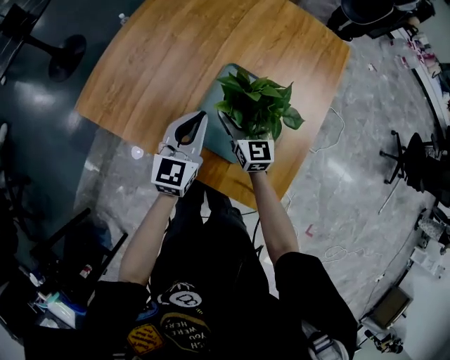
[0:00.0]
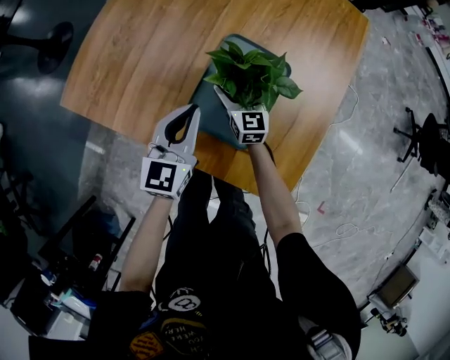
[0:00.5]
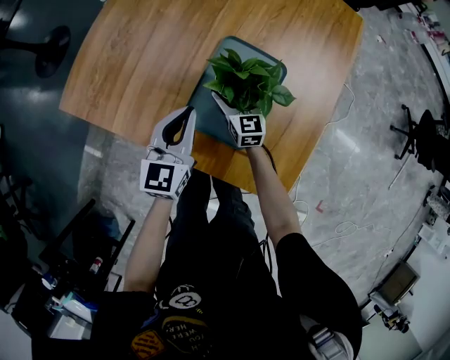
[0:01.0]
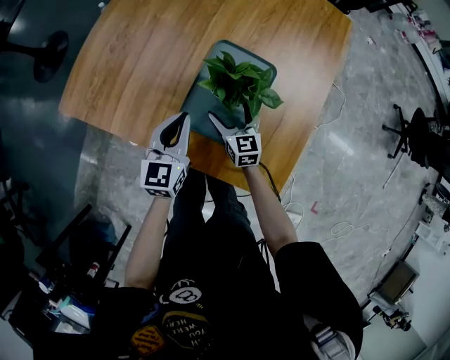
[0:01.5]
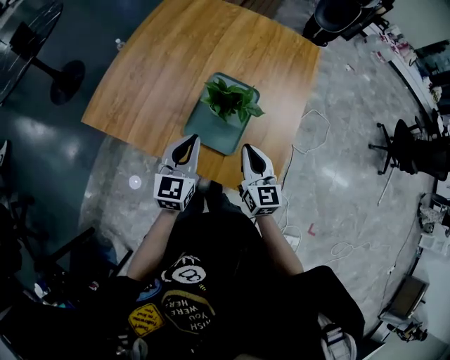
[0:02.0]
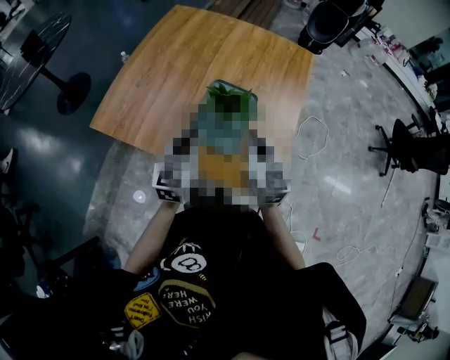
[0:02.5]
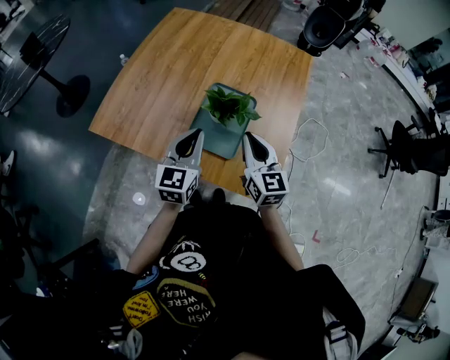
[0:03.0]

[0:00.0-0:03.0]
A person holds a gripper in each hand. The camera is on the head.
0:00.0 to 0:01.5: The left gripper heads downward, covering approximately 5 cm. Meanwhile the right gripper shifts roughly 10 cm downward.
0:01.5 to 0:03.0: The right gripper is displaced upward and backward by some 30 cm, and closes. Meanwhile the left gripper heads upward and backward, covering roughly 20 cm.

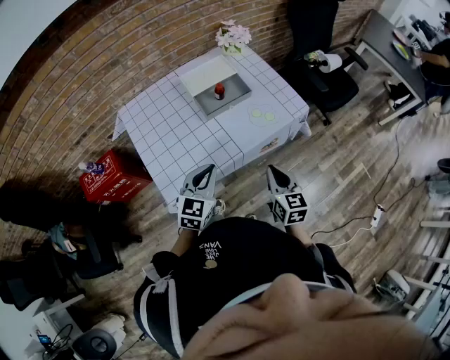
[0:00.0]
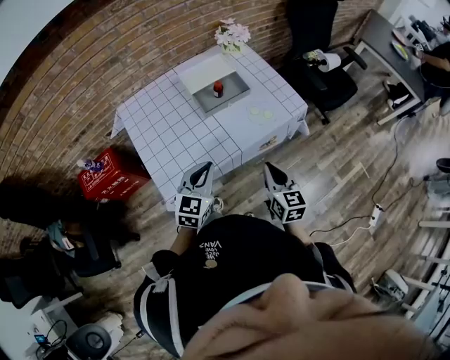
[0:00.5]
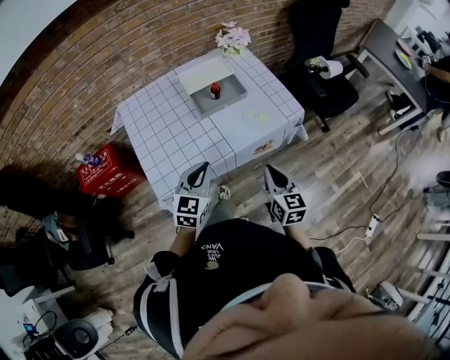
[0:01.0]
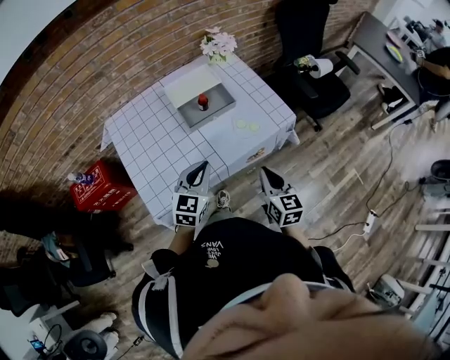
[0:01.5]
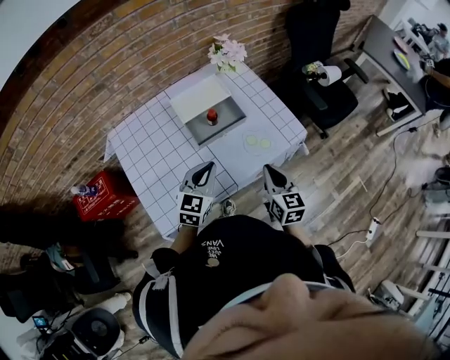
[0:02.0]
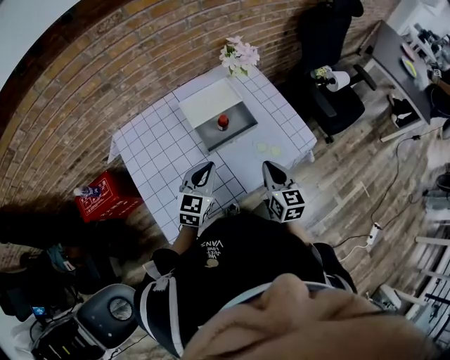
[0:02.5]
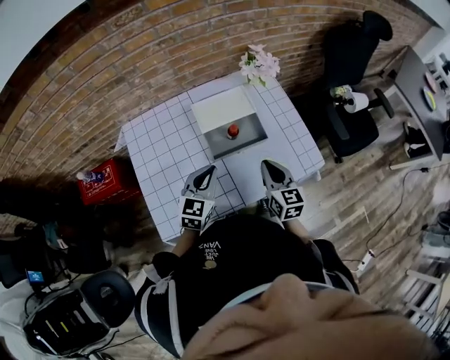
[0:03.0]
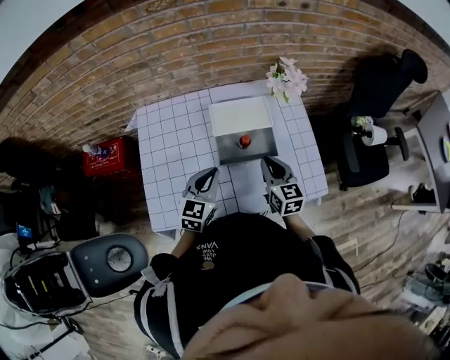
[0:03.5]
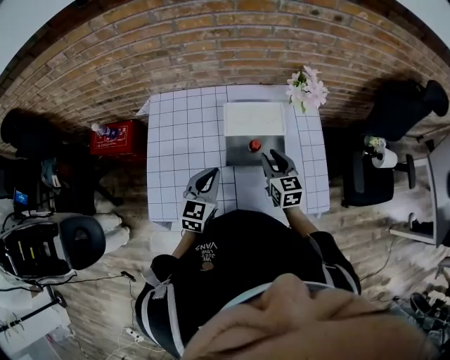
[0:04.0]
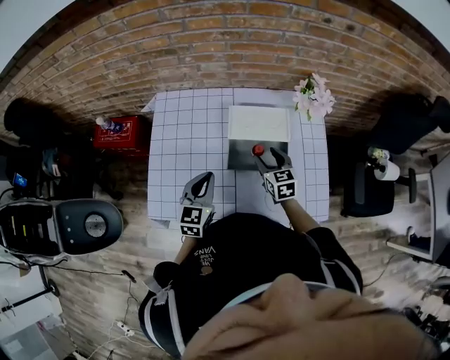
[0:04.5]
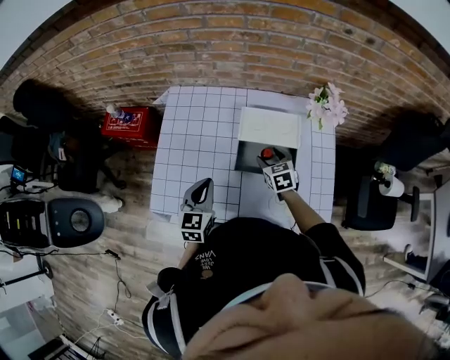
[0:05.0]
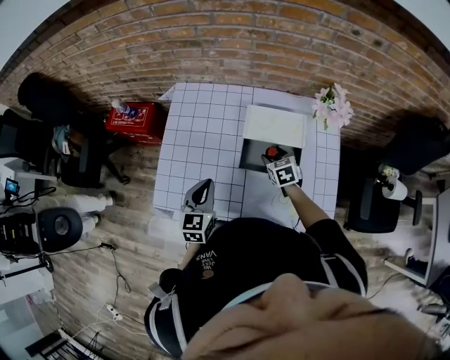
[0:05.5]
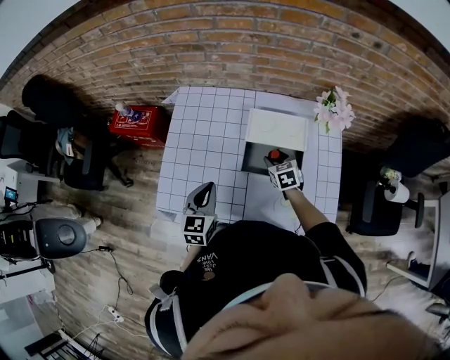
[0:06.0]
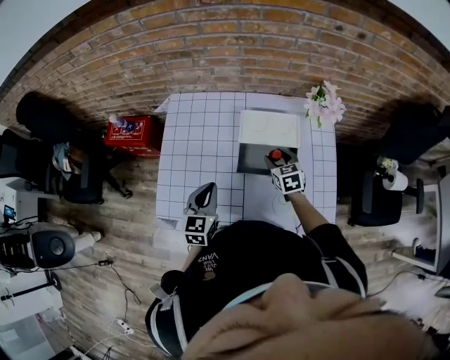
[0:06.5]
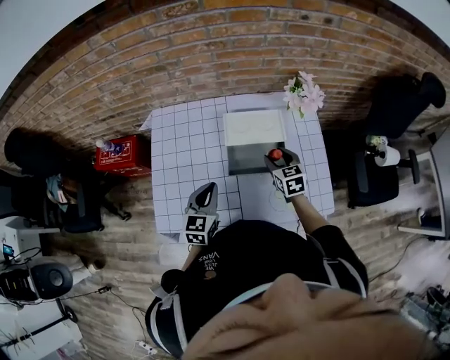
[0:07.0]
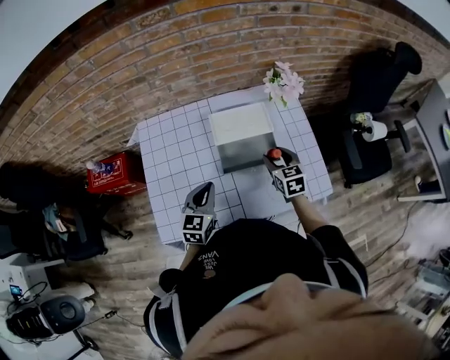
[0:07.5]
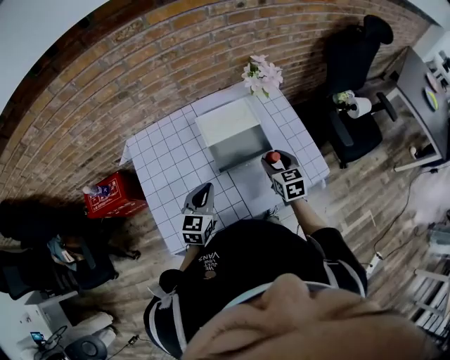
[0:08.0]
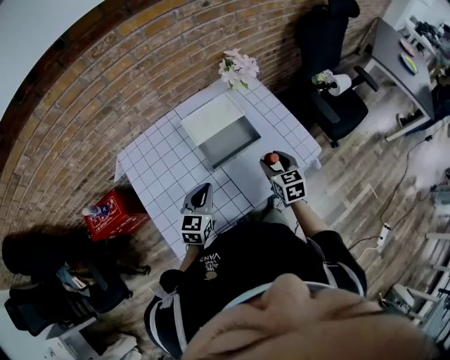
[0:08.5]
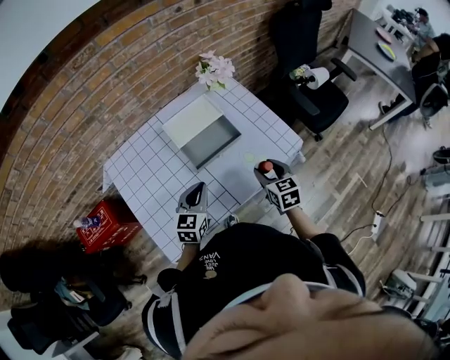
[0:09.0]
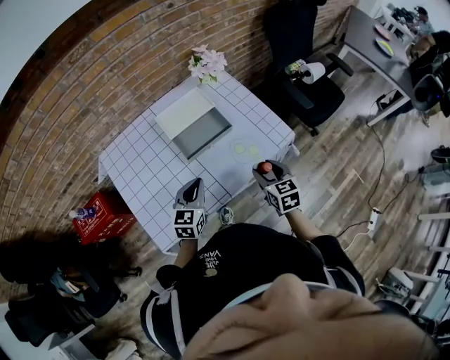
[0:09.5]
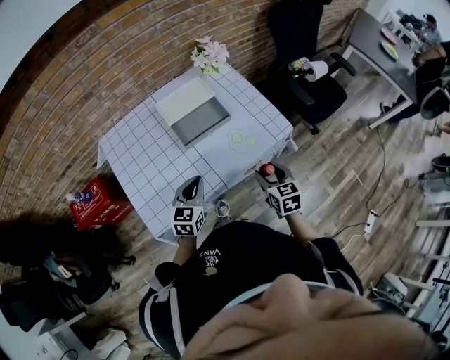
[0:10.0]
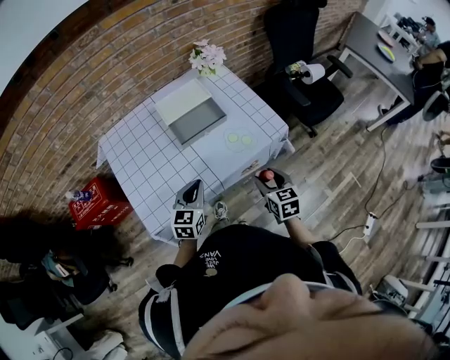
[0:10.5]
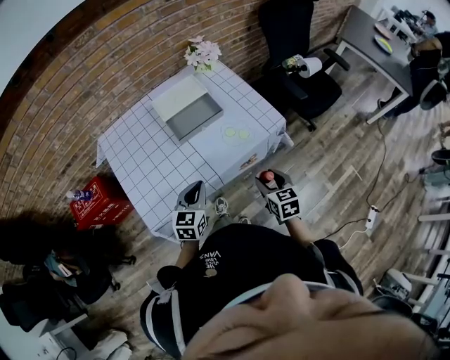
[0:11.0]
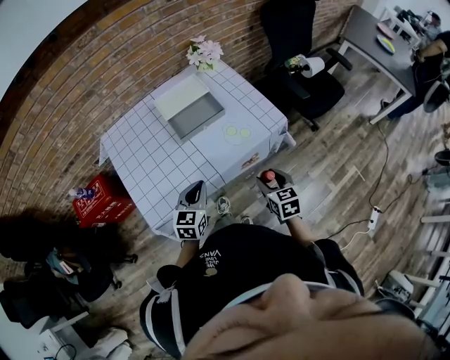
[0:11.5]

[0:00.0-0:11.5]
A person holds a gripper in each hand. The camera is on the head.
0:00.0 to 0:02.0: Both grippers move forward, approximately 15 cm.
0:02.0 to 0:04.0: The left gripper moves approximately 10 cm, and swivels about 30 degrees. The right gripper ends up approximately 25 cm from where it was, swivels roughly 30 degrees, and opens.
0:04.0 to 0:06.0: The right gripper travels downward and forward by roughly 15 cm, rotates some 30 degrees, and opens its fingers, while the left gripper is displaced to the left by some 5 cm, and swivels approximately 20 degrees.
0:06.0 to 0:07.5: The right gripper heads upward, to the right and backward, covering approximately 15 cm, and swivels approximately 30 degrees. Meanwhile the left gripper rotates approximately 20 degrees.
0:07.5 to 0:09.5: The left gripper travels to the right and backward by about 10 cm, and rotates about 20 degrees; the right gripper goes some 25 cm backward and to the right, and swivels roughly 20 degrees.
0:09.5 to 0:11.5: The grippers both shift backward by some 10 cm.

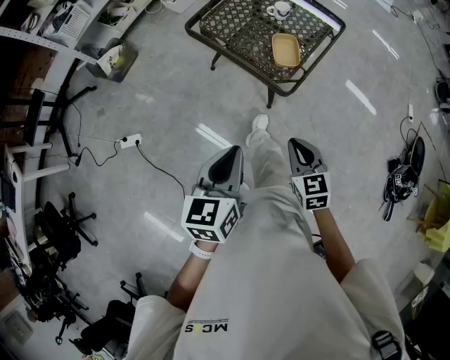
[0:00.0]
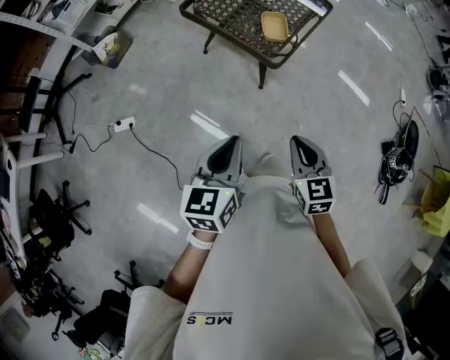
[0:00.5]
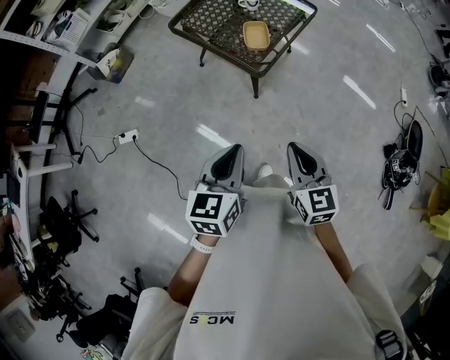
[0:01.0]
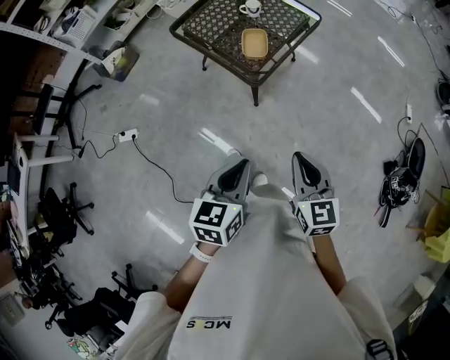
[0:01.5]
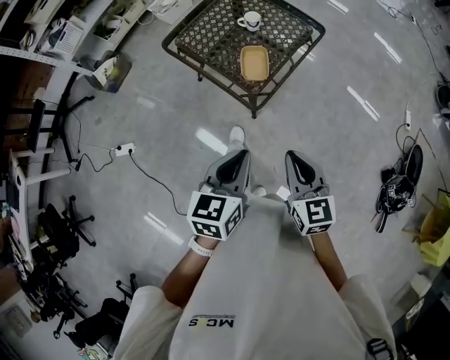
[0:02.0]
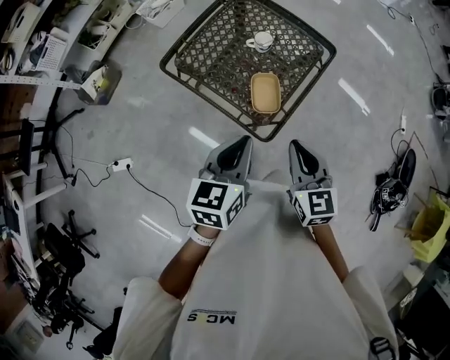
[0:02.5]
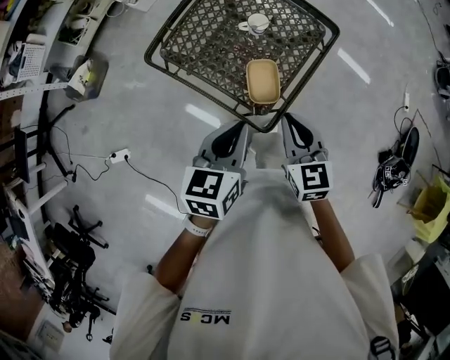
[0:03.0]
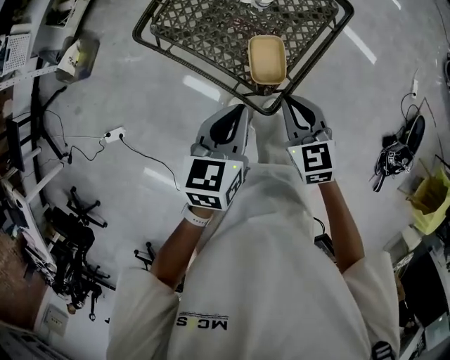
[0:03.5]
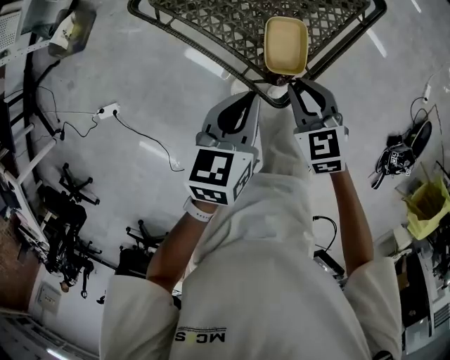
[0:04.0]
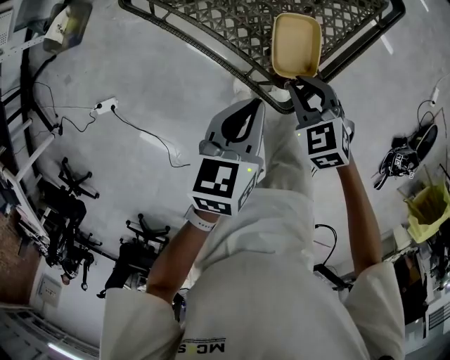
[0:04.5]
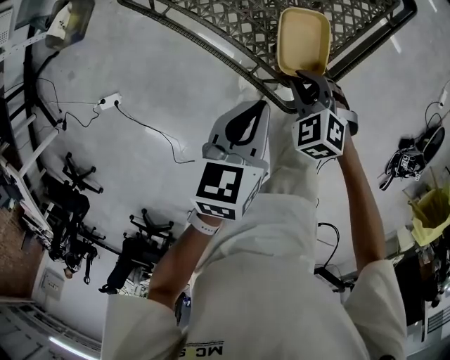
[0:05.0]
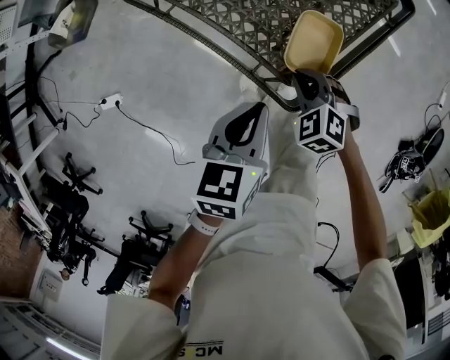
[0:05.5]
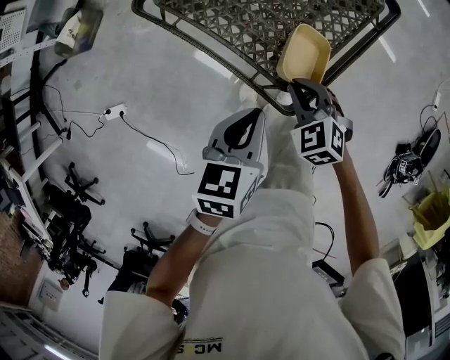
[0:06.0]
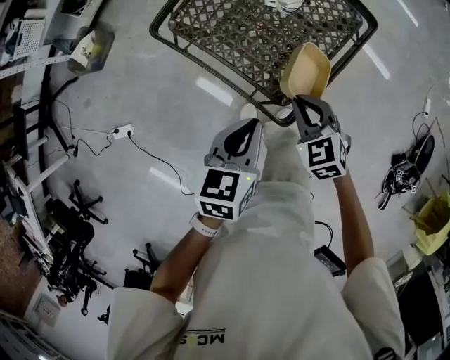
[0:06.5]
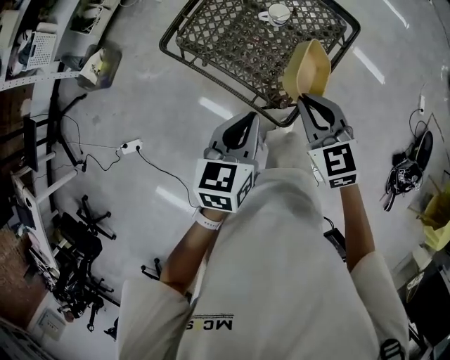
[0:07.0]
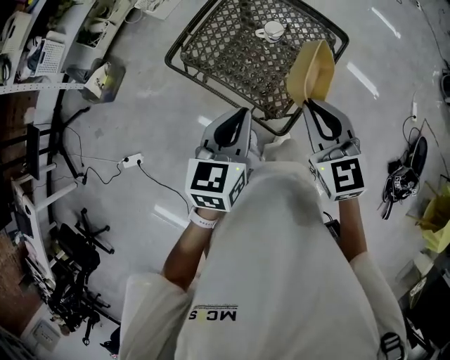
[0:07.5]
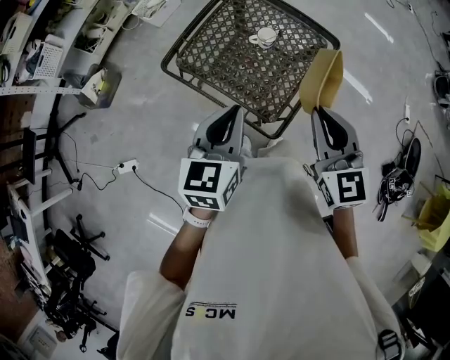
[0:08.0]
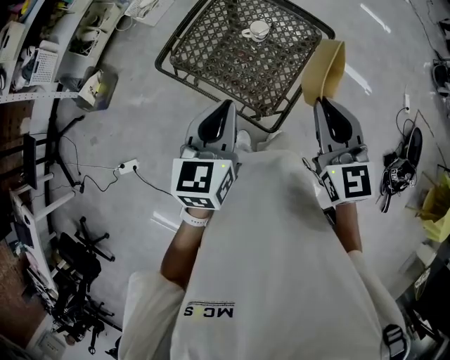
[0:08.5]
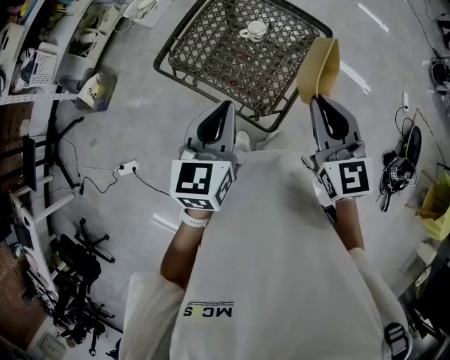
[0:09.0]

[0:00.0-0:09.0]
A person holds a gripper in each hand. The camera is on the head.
0:00.0 to 0:02.0: The left gripper goes about 15 cm to the right, while the right gripper travels to the right and upward by approximately 15 cm.
0:02.0 to 0:04.5: The grippers both shift forward and downward by about 35 cm. The right gripper tips its fingers downward by some 30 degrees.
0:04.5 to 0:07.0: The right gripper travels upward by approximately 20 cm, and turns by some 30 degrees; the left gripper heads upward, covering some 15 cm.
0:07.0 to 0:09.0: The right gripper goes approximately 15 cm upward and to the right, and rotates about 20 degrees; the left gripper shifts about 10 cm upward.

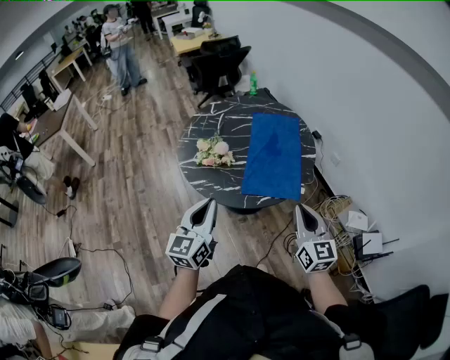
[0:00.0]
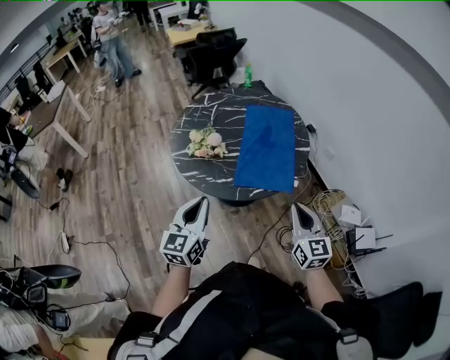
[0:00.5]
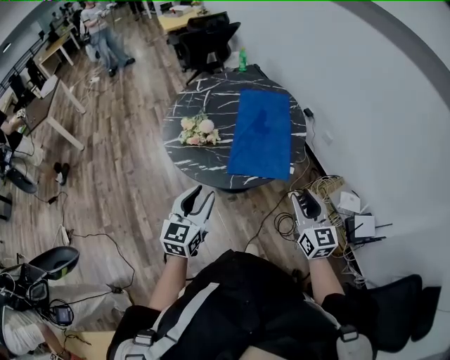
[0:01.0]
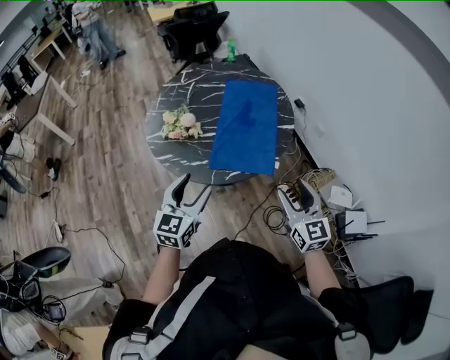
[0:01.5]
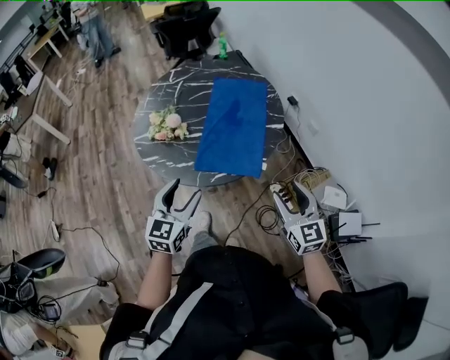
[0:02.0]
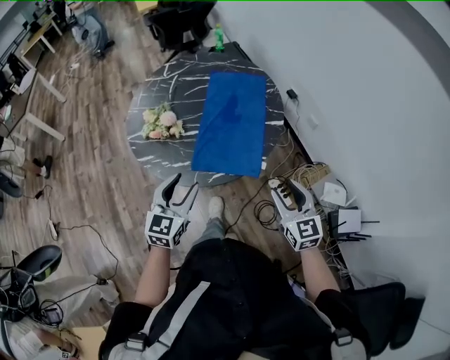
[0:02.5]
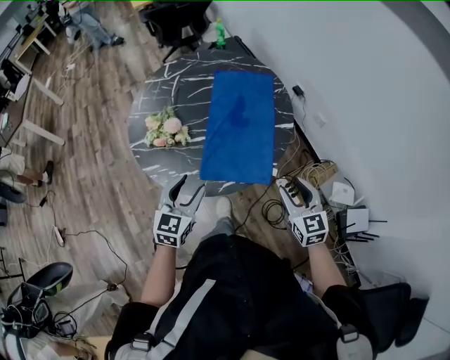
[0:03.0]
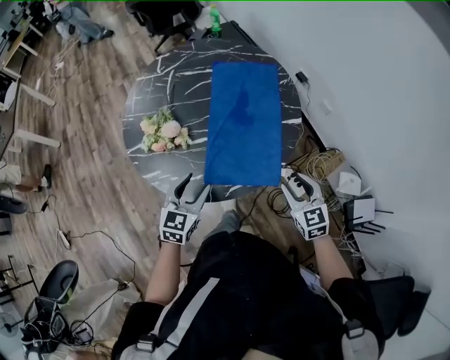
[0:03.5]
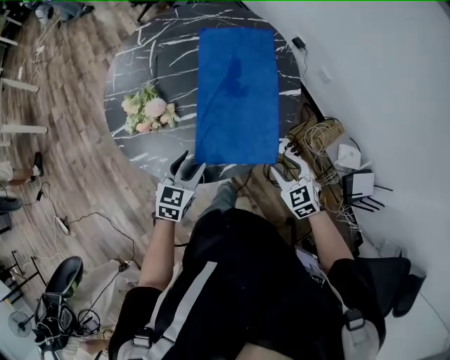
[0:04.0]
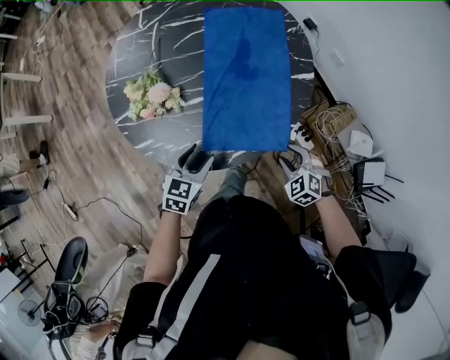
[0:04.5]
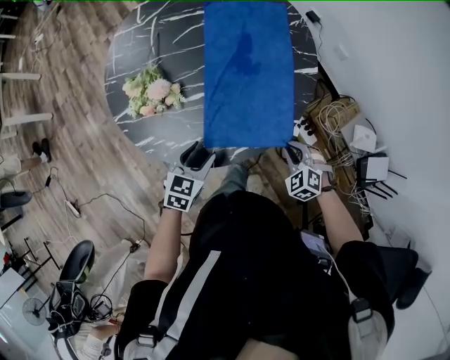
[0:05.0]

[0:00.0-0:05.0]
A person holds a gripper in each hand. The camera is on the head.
0:00.0 to 0:02.5: Both grippers travel together to the right, downward and forward, roughly 20 cm. The left gripper opens its fingers. The right gripper opens.
0:02.5 to 0:05.0: The right gripper goes roughly 25 cm downward, angles its fingers downward, by roughly 40 degrees, and closes its fingers. The left gripper goes approximately 20 cm downward and forward, and turns by about 30 degrees.
